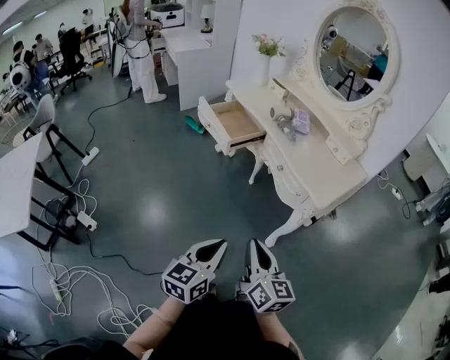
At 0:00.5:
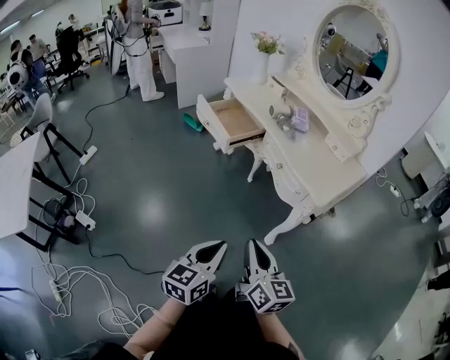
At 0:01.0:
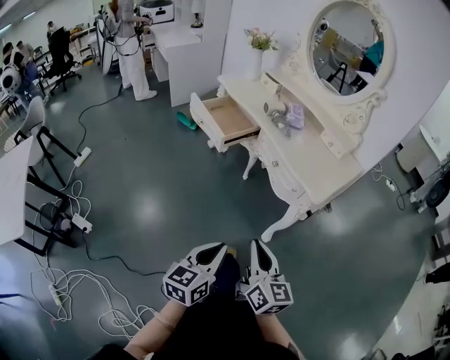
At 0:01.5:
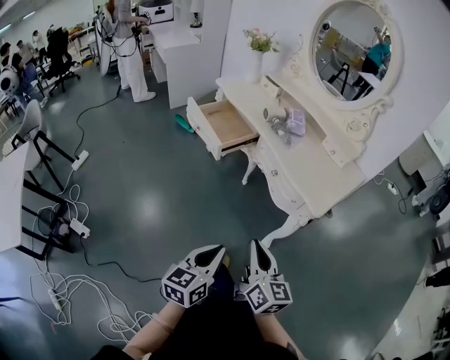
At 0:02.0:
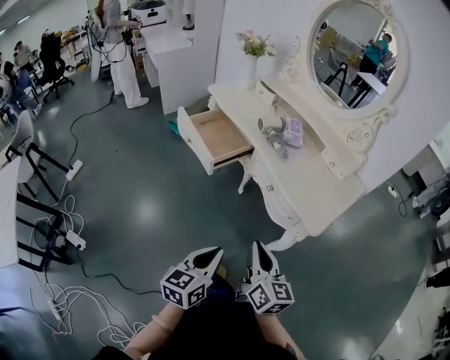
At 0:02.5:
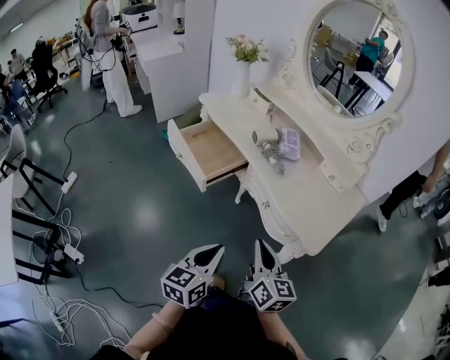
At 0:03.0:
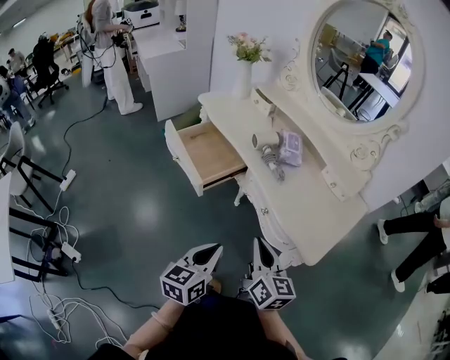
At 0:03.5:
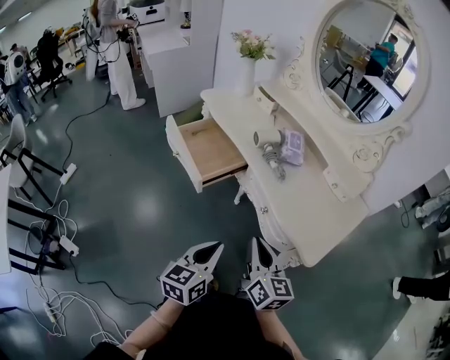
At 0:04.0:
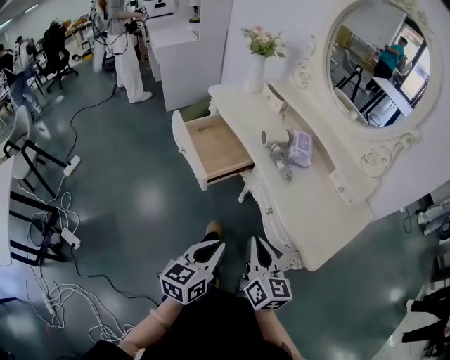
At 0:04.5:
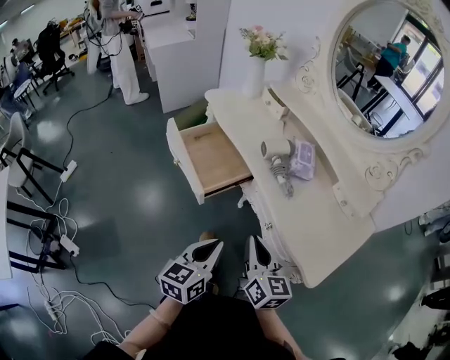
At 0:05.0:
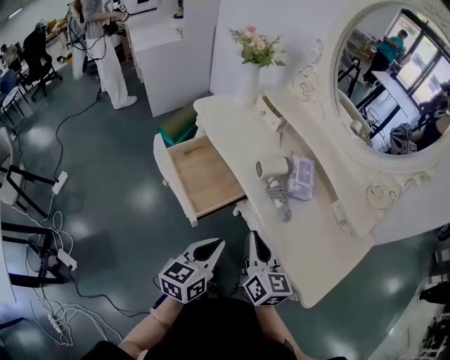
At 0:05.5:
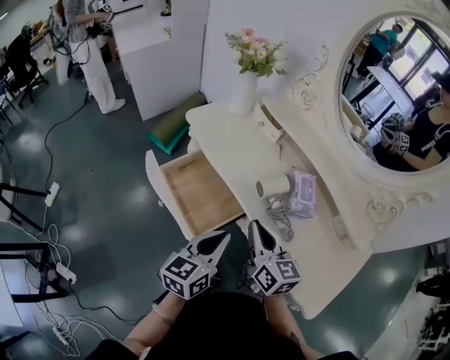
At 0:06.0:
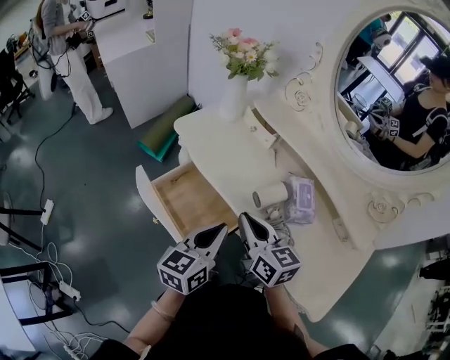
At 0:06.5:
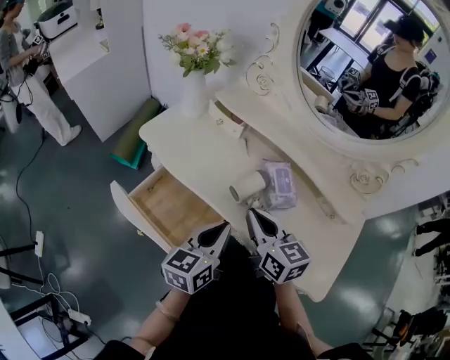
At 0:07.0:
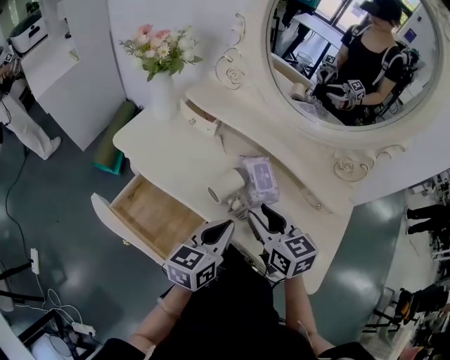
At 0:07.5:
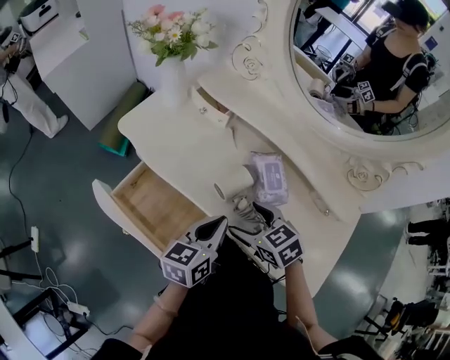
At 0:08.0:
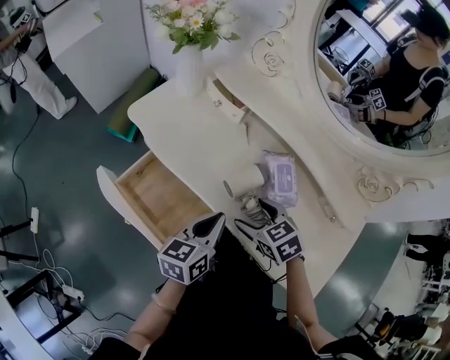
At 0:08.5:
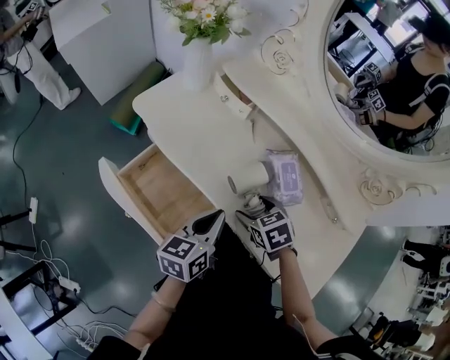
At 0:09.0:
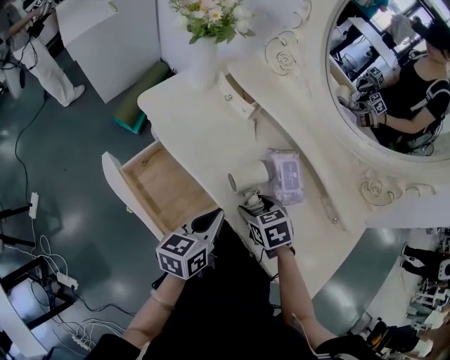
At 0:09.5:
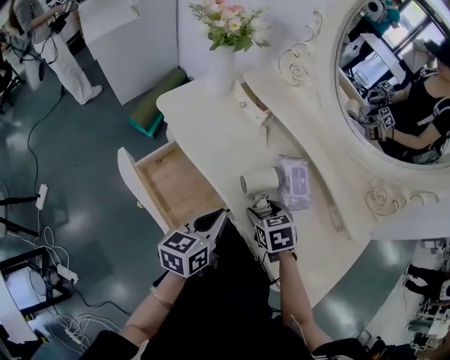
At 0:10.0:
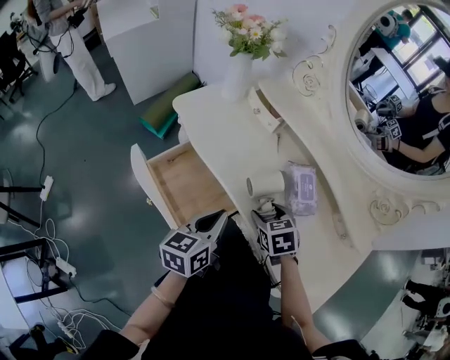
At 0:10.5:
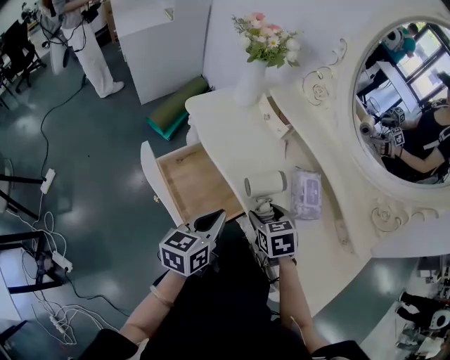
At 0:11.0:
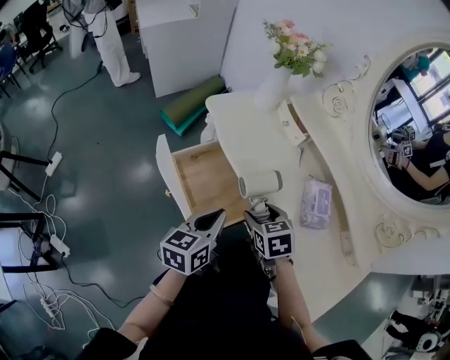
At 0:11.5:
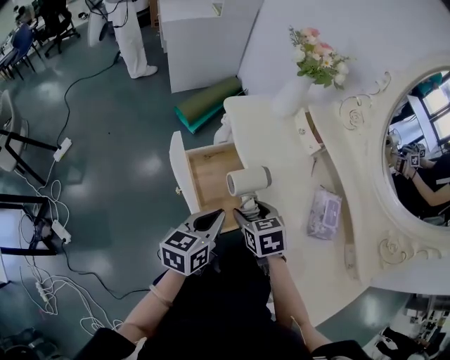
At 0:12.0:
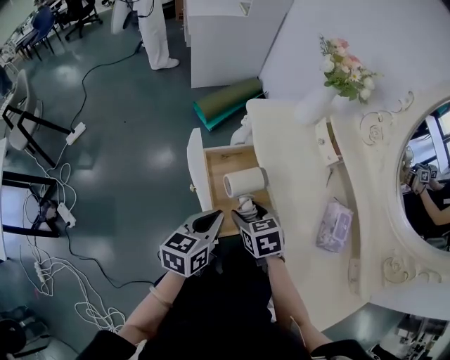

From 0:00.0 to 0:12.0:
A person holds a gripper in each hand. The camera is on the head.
From 0:00.0 to 0:02.0: Both grippers travel together forward, roughly 15 cm.
From 0:02.0 to 0:04.0: The two grippers go approximately 15 cm forward.
From 0:04.0 to 0:06.0: The two grippers go about 35 cm forward.
From 0:06.0 to 0:08.0: The left gripper moves to the right, roughly 5 cm. Meanwhile the right gripper goes roughly 15 cm to the right and downward, points its fingers about 40 degrees further downward, and opens up.
From 0:08.0 to 0:10.0: The left gripper is displaced to the left by about 5 cm.
From 0:10.0 to 0:12.0: The left gripper moves roughly 15 cm, and rotates roughly 20 degrees; the right gripper ends up some 20 cm from where it was, and rotates approximately 30 degrees.

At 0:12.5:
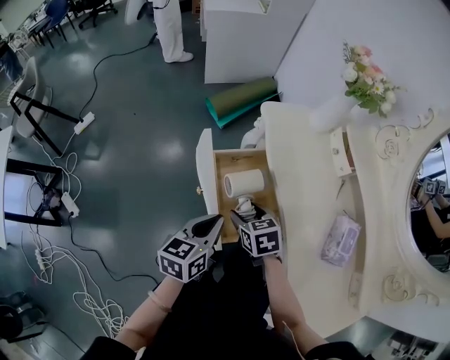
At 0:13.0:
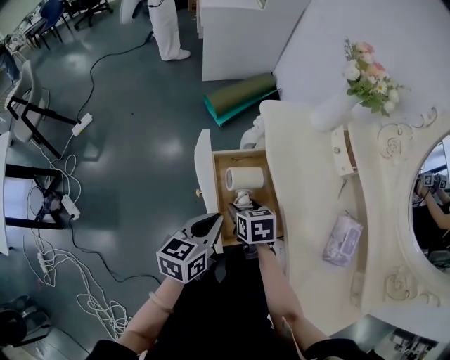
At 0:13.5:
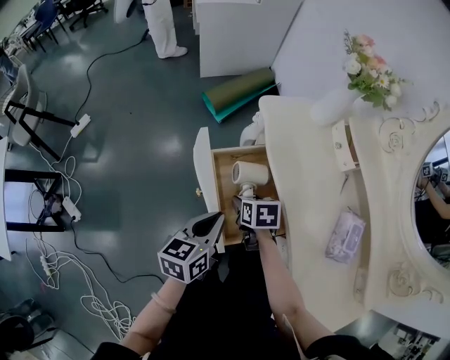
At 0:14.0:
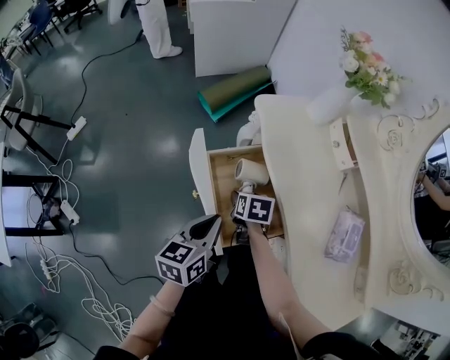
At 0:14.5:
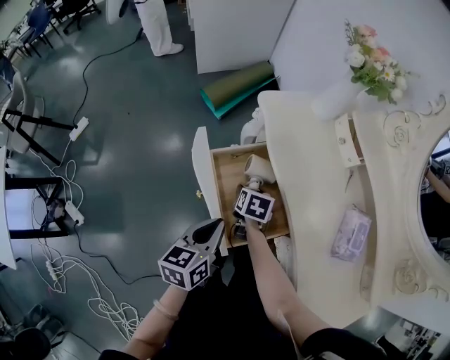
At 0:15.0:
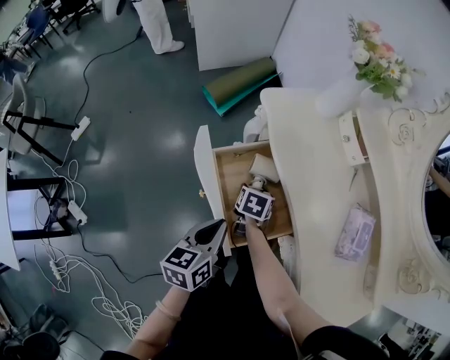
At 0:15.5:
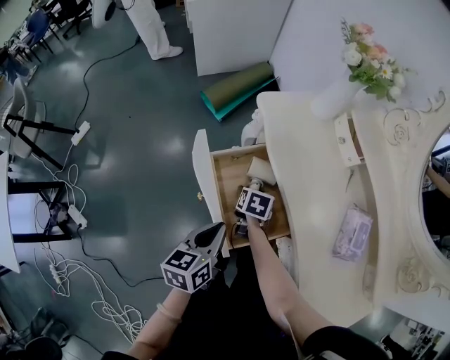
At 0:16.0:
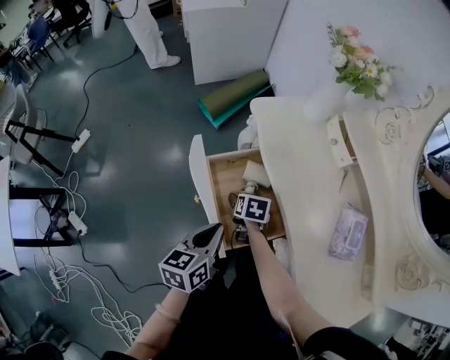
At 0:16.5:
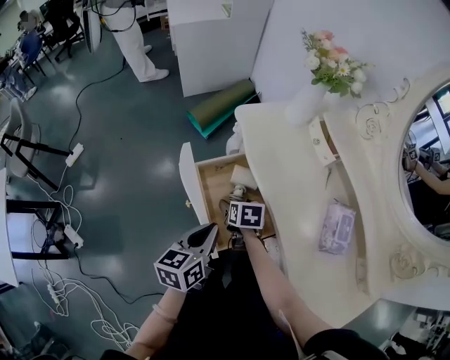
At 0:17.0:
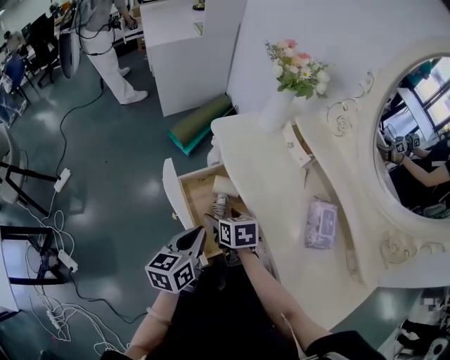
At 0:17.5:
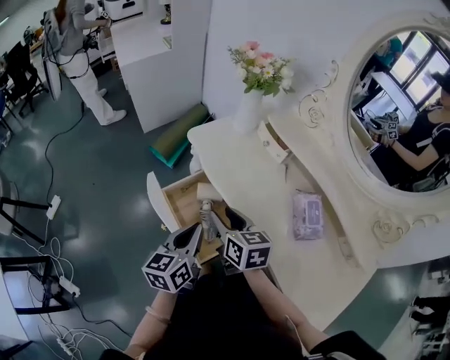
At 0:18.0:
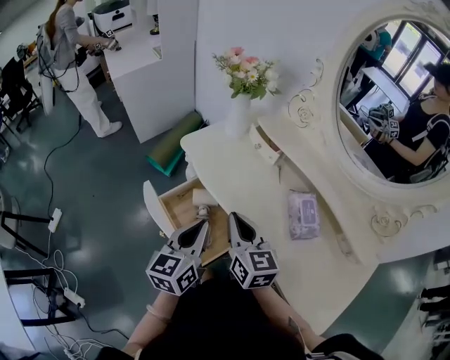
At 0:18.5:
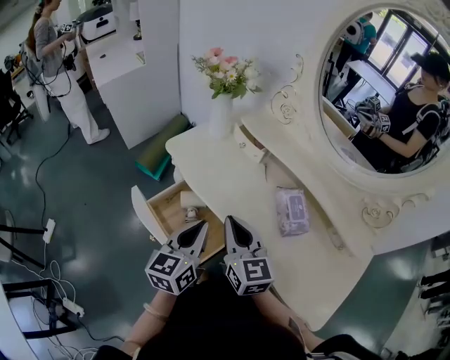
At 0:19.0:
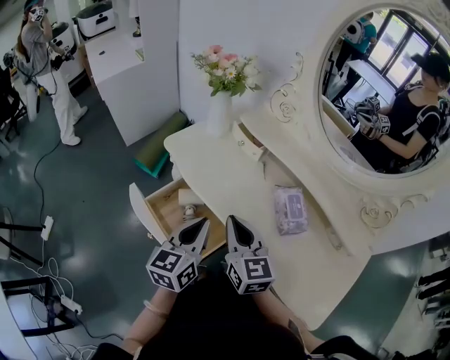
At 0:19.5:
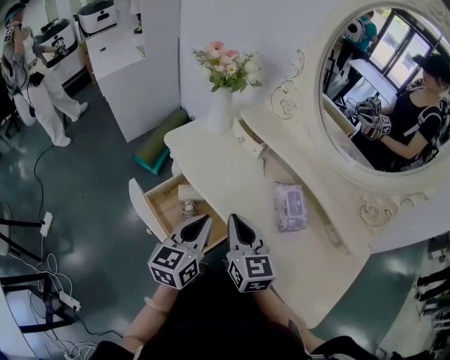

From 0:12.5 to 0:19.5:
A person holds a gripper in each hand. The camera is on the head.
From 0:12.5 to 0:14.5: The right gripper heads downward and forward, covering about 10 cm, and turns by roughly 40 degrees.
From 0:14.5 to 0:16.0: There are only small adjustments of the grippers.
From 0:16.0 to 0:17.5: The left gripper heads upward, covering about 5 cm, while the right gripper heads upward, covering some 25 cm, tips its fingers upward by about 40 degrees, and closes.
From 0:17.5 to 0:19.5: The left gripper goes roughly 10 cm to the right. Meanwhile the right gripper is displaced to the right and upward by roughly 10 cm, turns by about 30 degrees, and closes.

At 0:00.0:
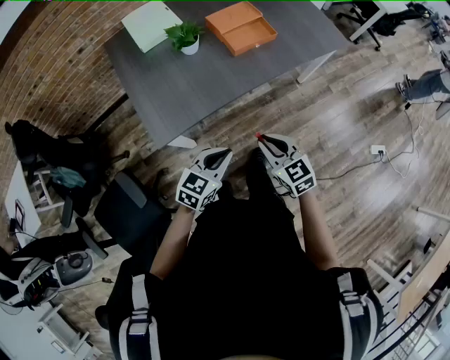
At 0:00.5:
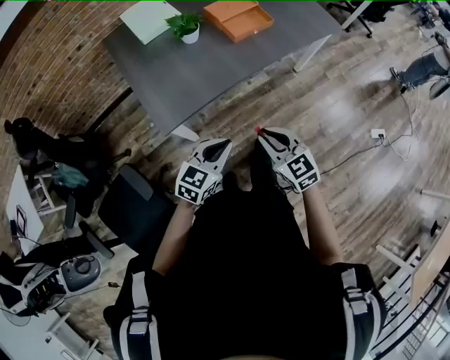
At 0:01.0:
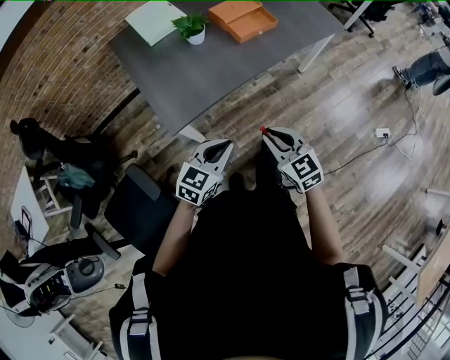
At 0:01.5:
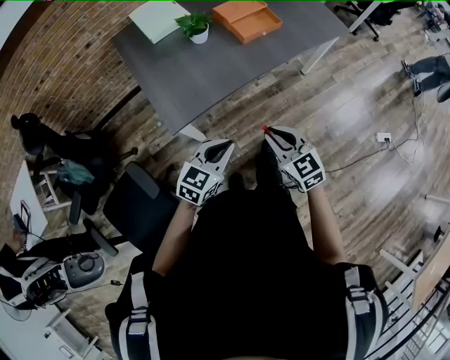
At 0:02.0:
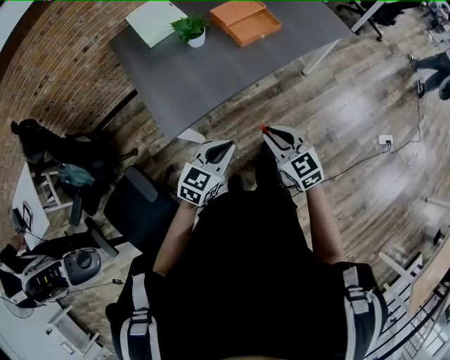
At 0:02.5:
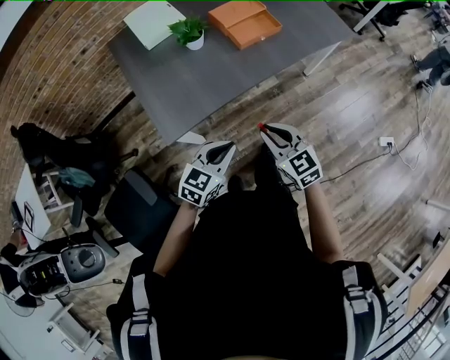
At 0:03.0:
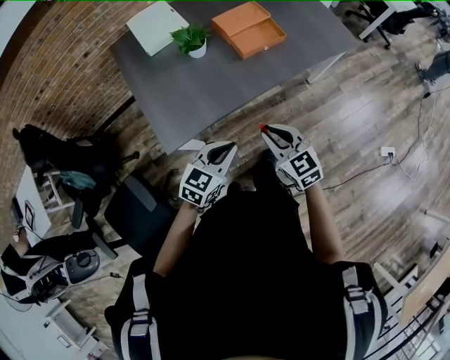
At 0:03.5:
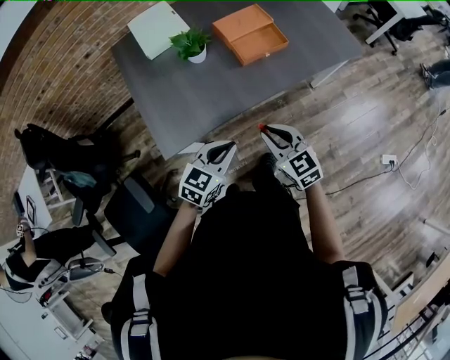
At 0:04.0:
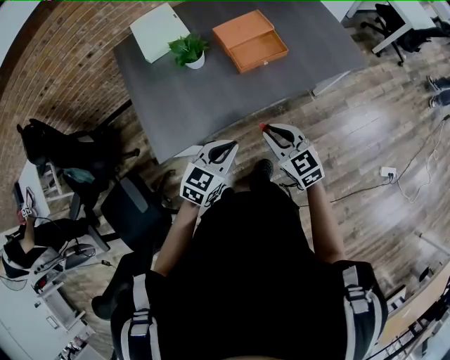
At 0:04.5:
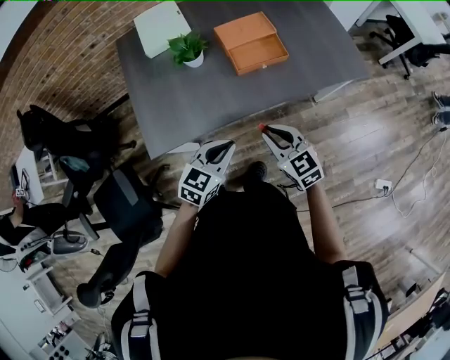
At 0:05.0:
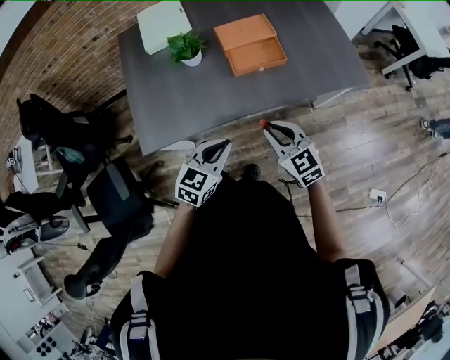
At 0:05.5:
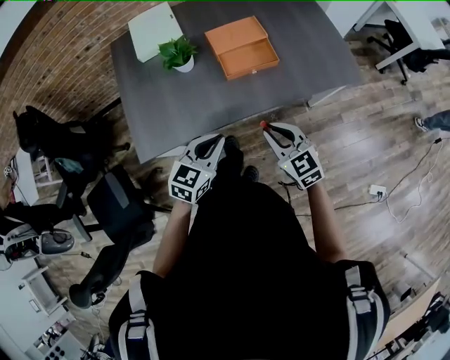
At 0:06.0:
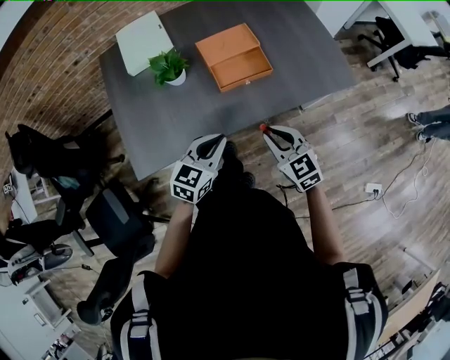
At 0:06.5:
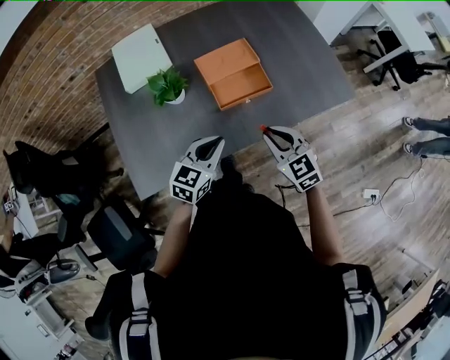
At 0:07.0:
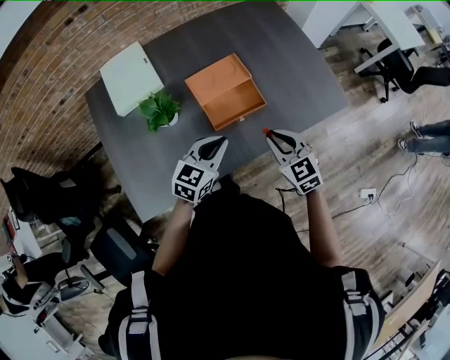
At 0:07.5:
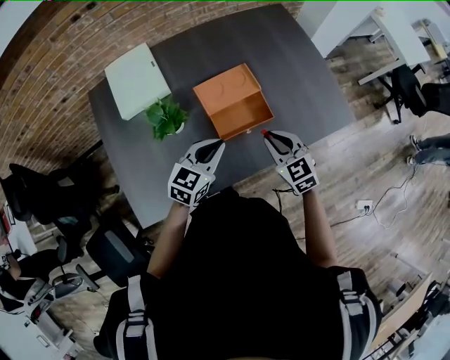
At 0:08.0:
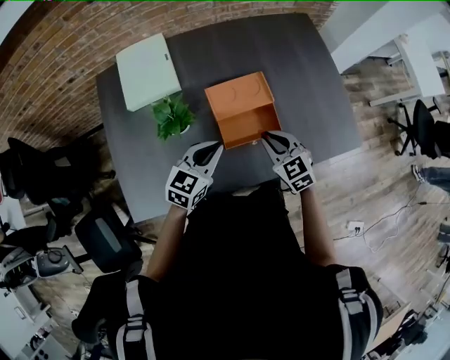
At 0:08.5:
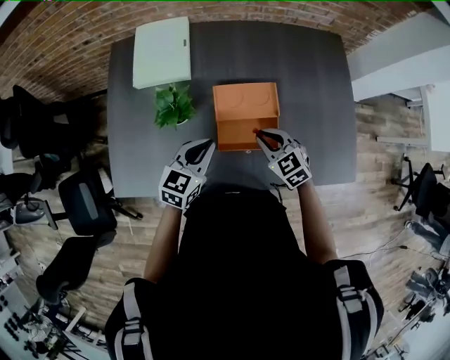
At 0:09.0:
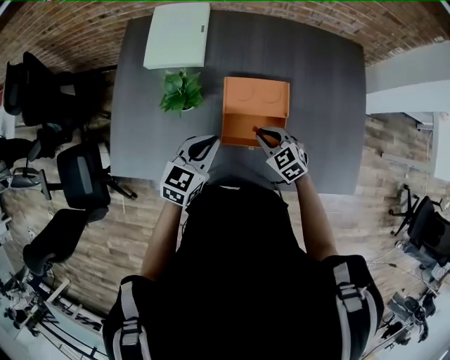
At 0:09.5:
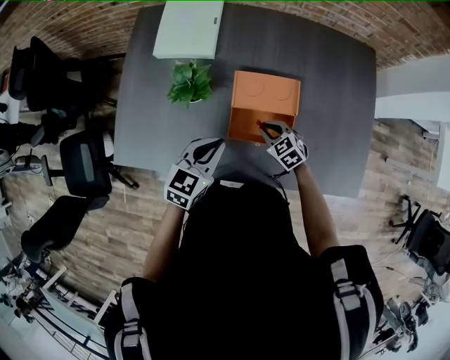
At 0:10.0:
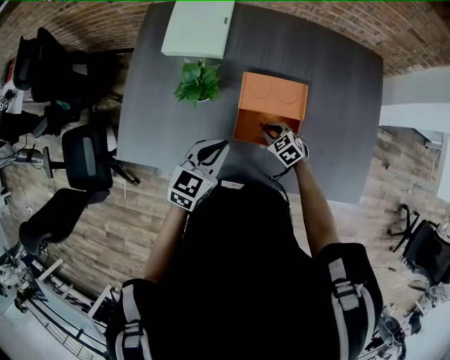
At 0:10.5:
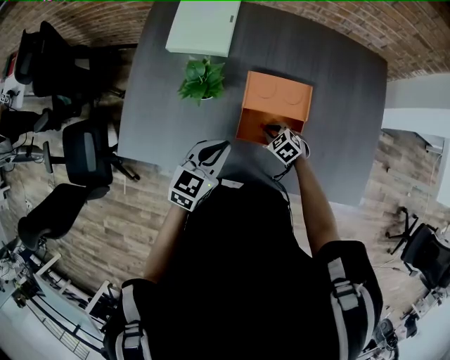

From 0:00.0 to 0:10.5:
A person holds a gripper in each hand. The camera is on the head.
From 0:02.0 to 0:04.0: The two grippers go some 20 cm forward and to the right.
From 0:04.0 to 0:06.5: The right gripper travels forward and to the right by roughly 20 cm, while the left gripper shifts about 20 cm forward.
From 0:06.5 to 0:08.5: The left gripper ends up about 20 cm from where it was, and swivels some 20 degrees. Meanwhile the right gripper moves some 25 cm, and changes its angle by roughly 30 degrees.
From 0:08.5 to 0:10.5: The right gripper shifts approximately 20 cm downward, and swivels roughly 30 degrees.
